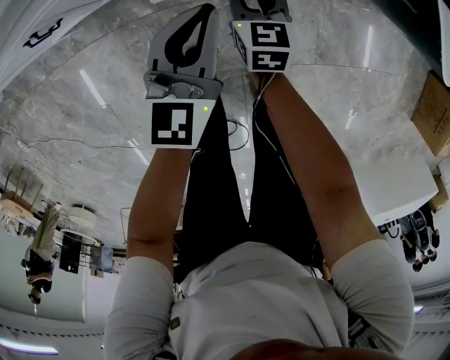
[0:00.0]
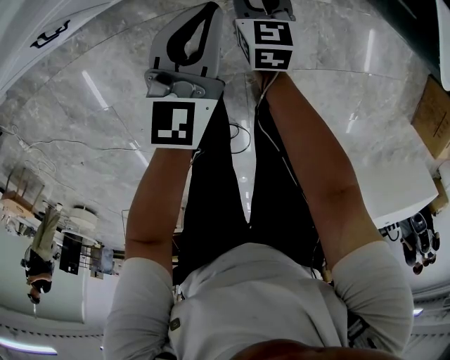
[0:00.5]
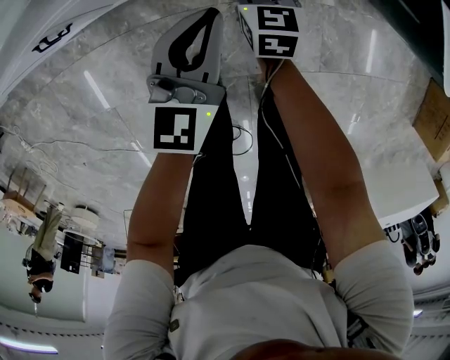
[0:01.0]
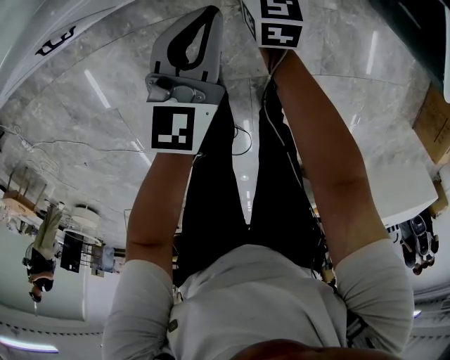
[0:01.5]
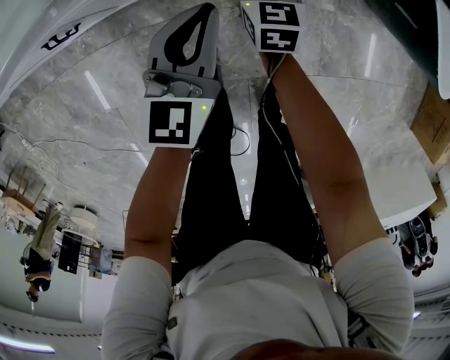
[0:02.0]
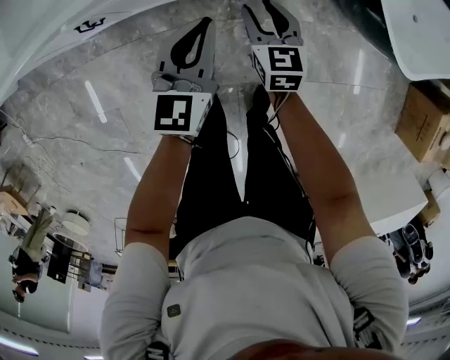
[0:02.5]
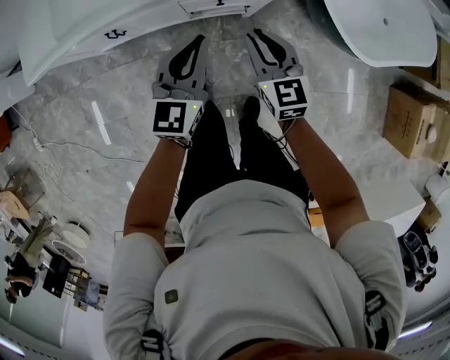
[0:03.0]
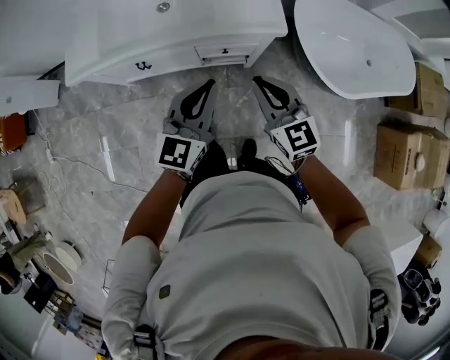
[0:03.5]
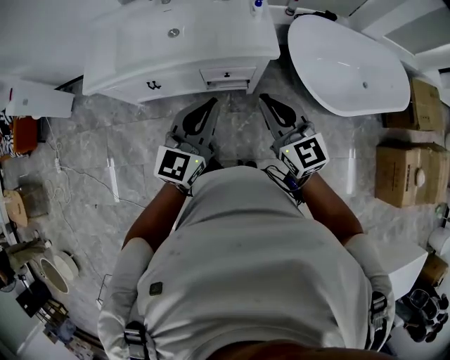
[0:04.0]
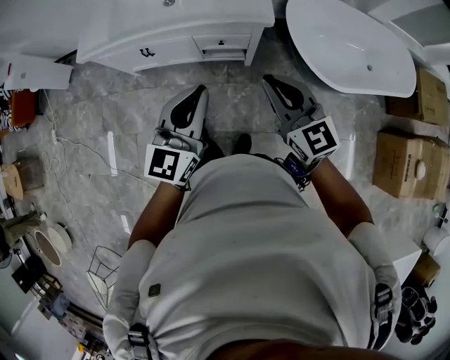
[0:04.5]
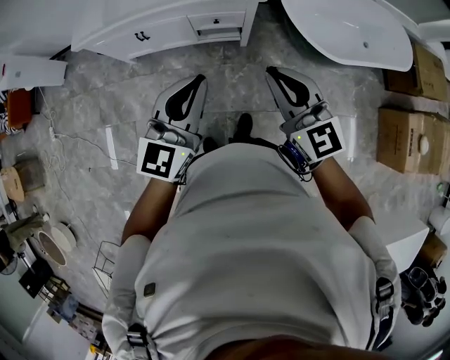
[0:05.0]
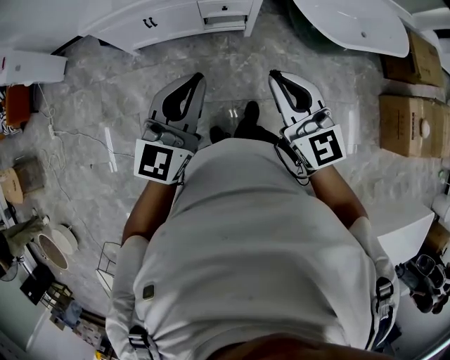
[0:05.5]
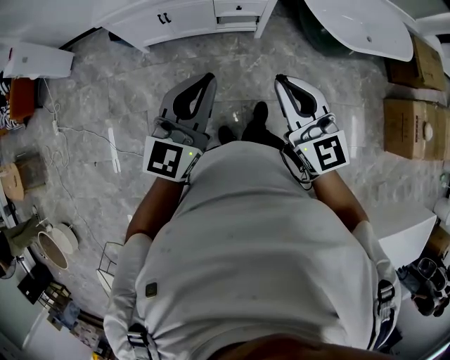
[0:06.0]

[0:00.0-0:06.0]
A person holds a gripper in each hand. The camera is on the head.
0:00.0 to 0:02.0: The left gripper ends up approximately 5 cm from where it was; the right gripper shifts approximately 10 cm forward.
0:02.0 to 0:04.0: Both grippers move upward and backward, roughly 60 cm. The right gripper changes its angle by approximately 40 degrees, and closes.
0:04.0 to 0:06.0: The right gripper moves backward, roughly 30 cm. Meanwhile the left gripper heads backward and to the left, covering some 30 cm.

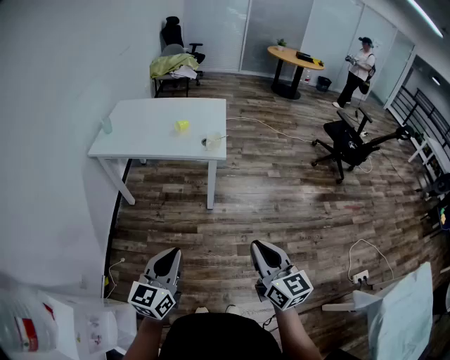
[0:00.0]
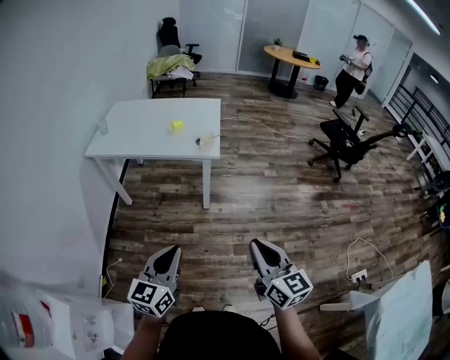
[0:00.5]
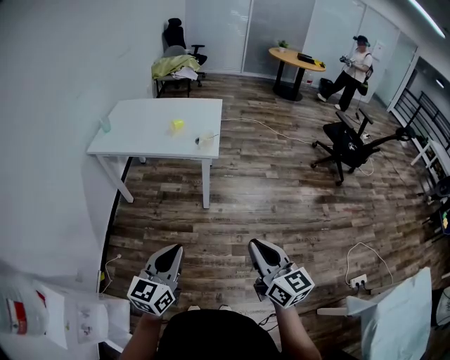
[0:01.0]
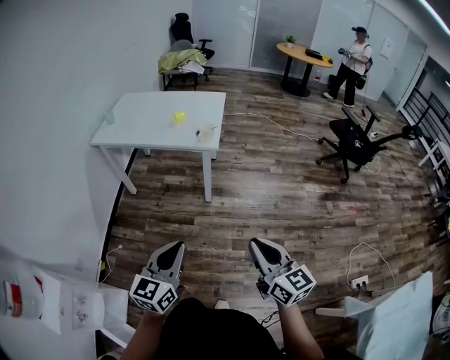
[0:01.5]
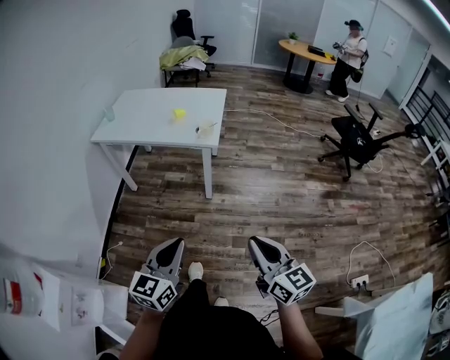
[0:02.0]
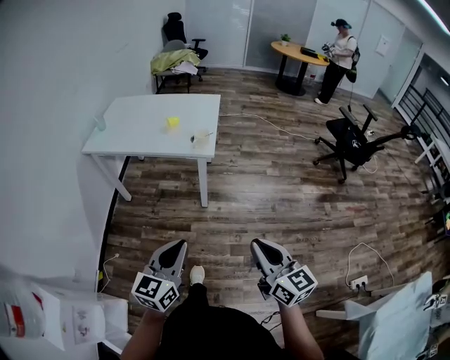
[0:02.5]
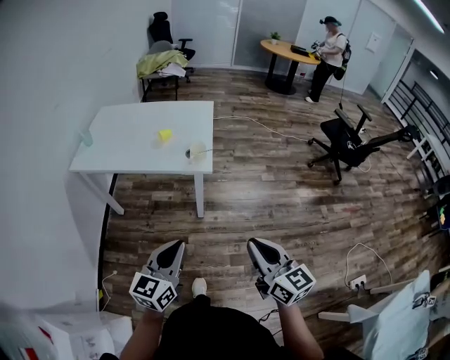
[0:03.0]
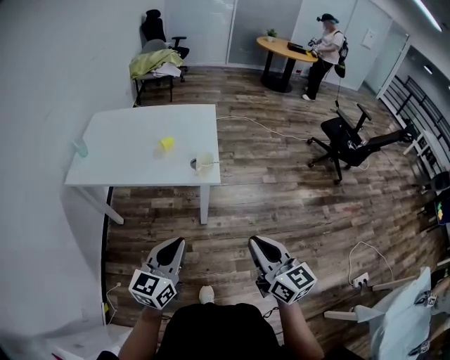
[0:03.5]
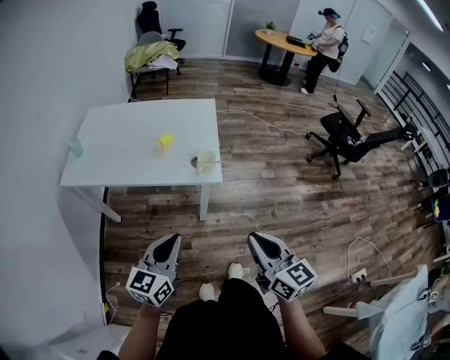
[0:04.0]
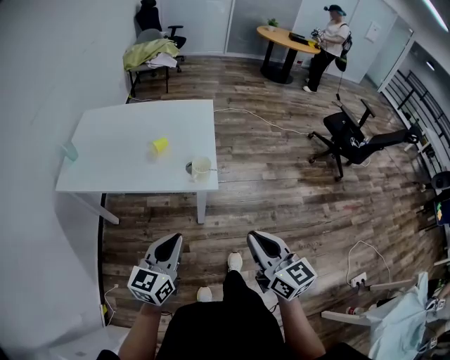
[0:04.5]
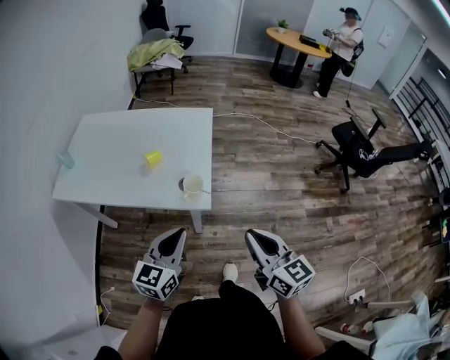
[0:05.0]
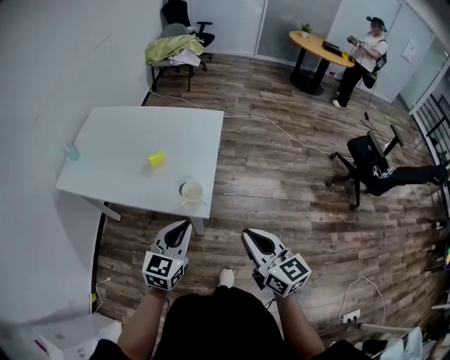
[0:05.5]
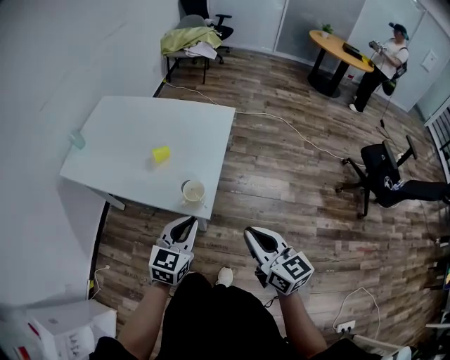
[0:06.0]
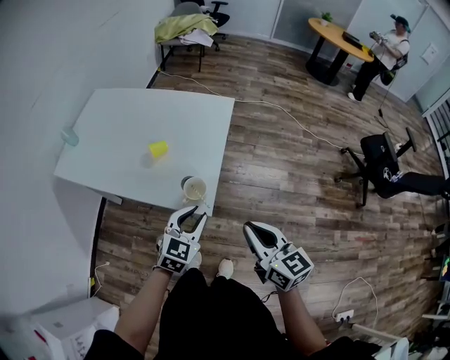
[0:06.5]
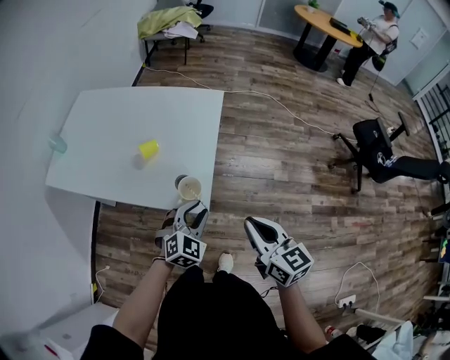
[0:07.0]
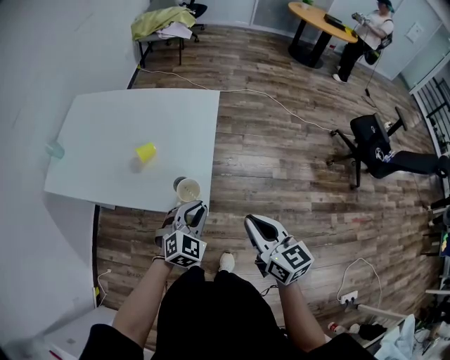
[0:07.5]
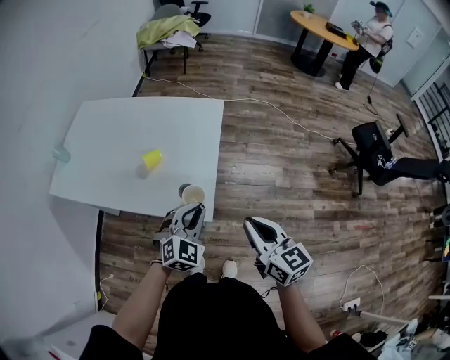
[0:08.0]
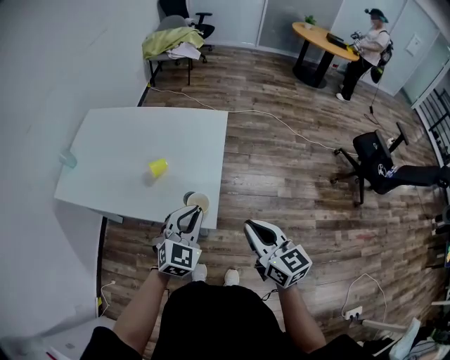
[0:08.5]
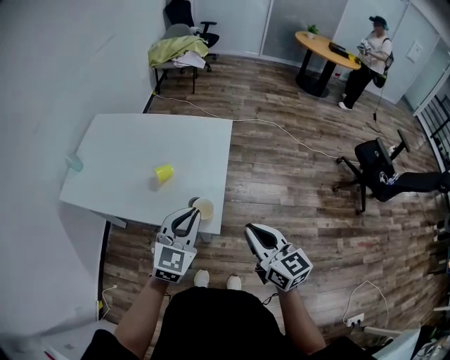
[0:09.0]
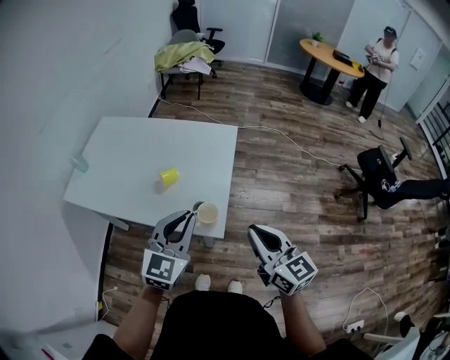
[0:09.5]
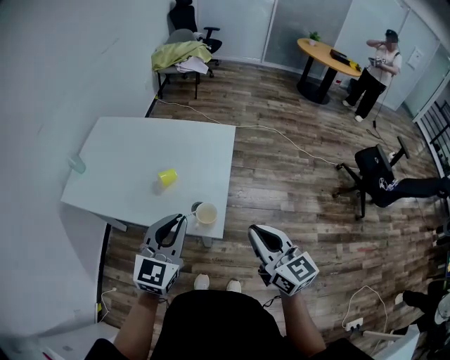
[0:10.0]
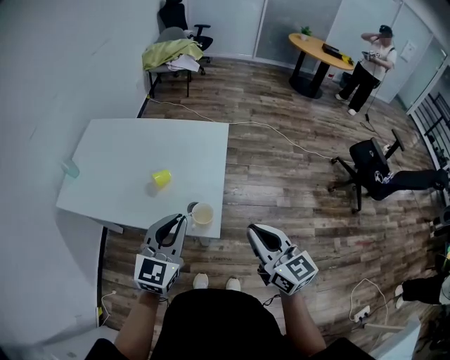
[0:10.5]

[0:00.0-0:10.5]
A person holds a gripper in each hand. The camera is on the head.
0:00.0 to 0:02.0: The grippers both shift to the right by roughly 10 cm.
0:02.0 to 0:04.0: The left gripper shifts approximately 30 cm forward. Meanwhile the right gripper travels forward and to the left by about 30 cm.
0:04.0 to 0:06.5: Both grippers travel together forward and to the right, approximately 30 cm. The left gripper turns by roughly 30 degrees.
0:06.5 to 0:08.5: The left gripper heads upward, covering roughly 5 cm.
0:08.5 to 0:10.5: The right gripper shifts by some 5 cm, while the left gripper moves upward and to the left, roughly 10 cm, and swivels some 20 degrees.

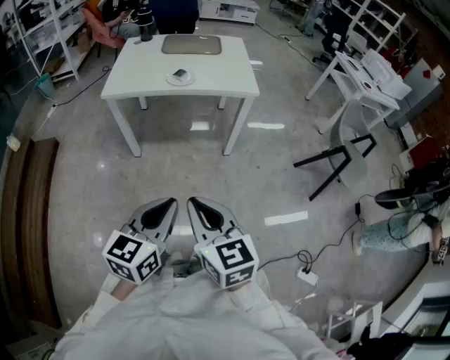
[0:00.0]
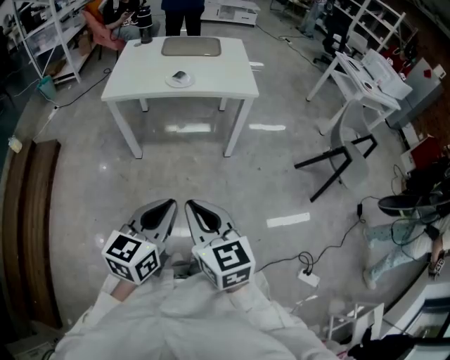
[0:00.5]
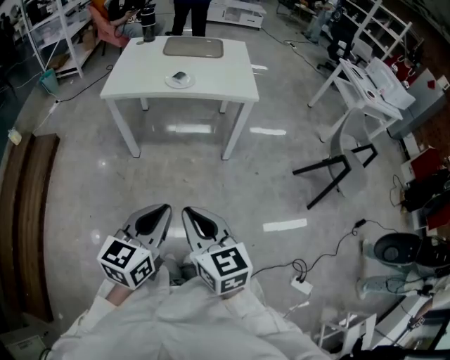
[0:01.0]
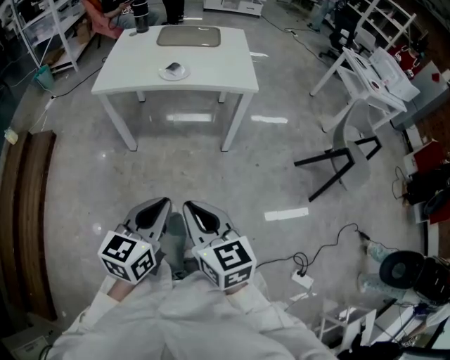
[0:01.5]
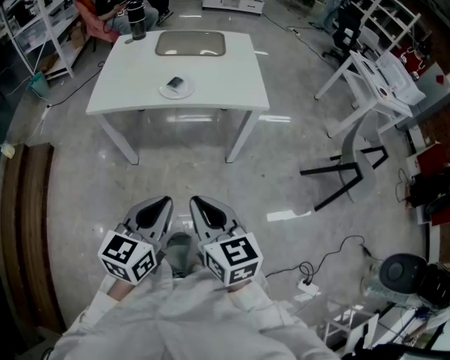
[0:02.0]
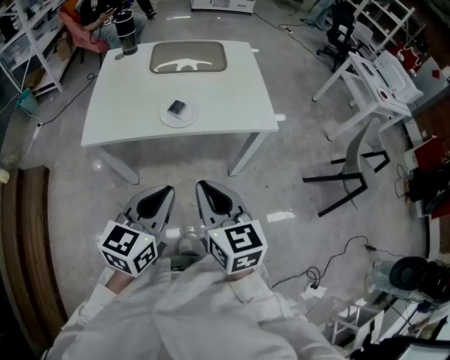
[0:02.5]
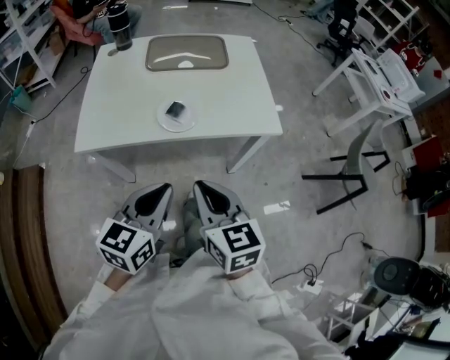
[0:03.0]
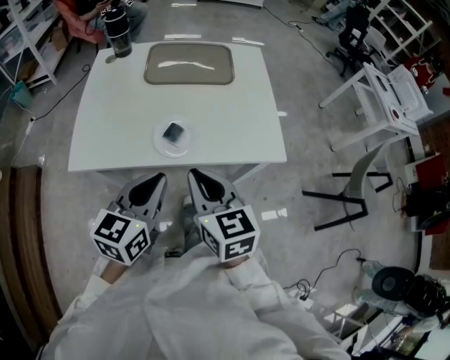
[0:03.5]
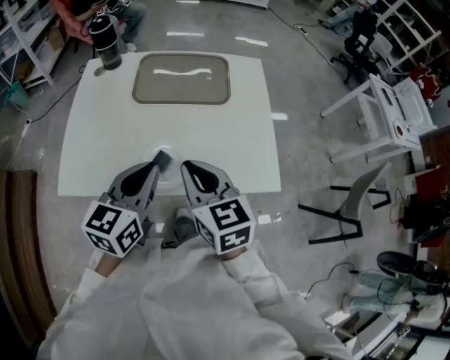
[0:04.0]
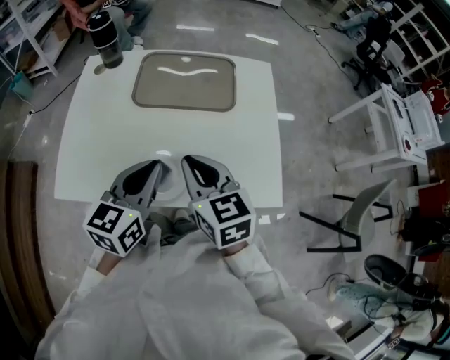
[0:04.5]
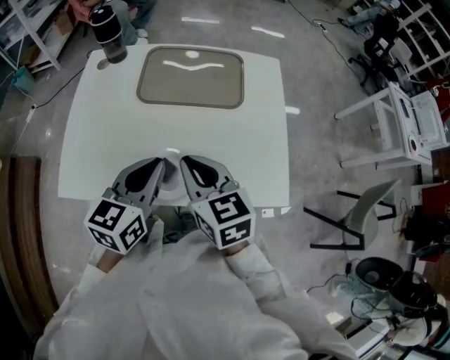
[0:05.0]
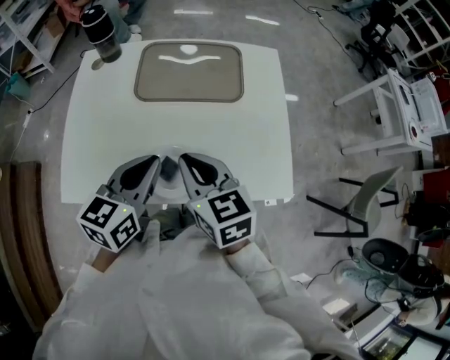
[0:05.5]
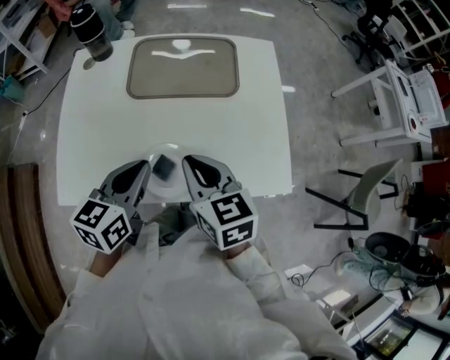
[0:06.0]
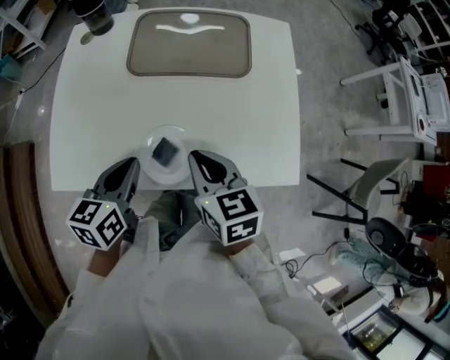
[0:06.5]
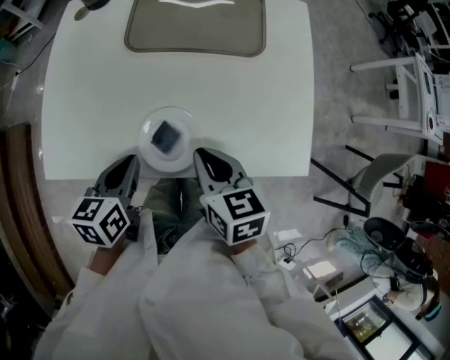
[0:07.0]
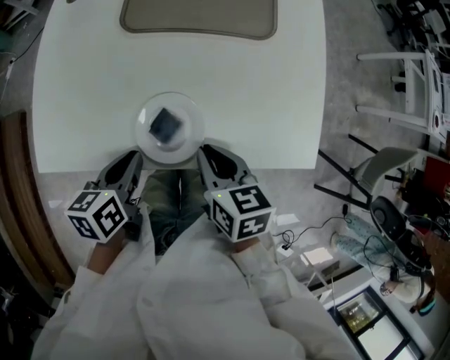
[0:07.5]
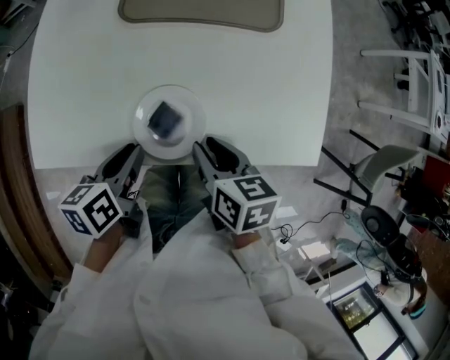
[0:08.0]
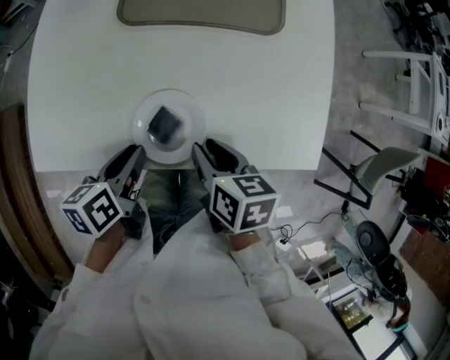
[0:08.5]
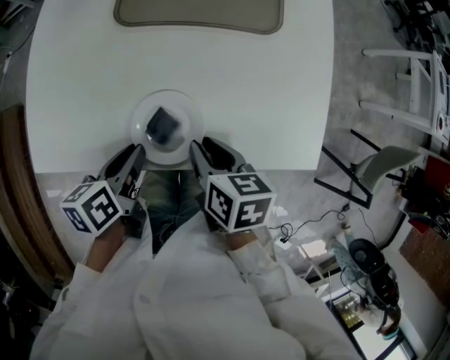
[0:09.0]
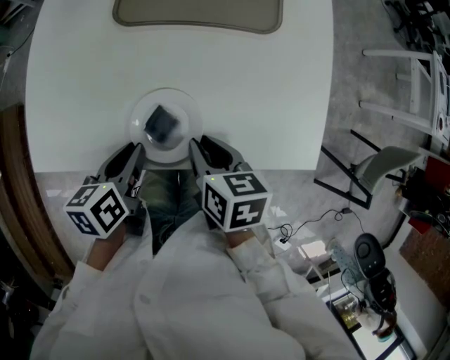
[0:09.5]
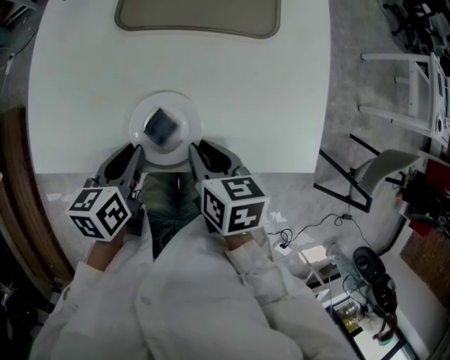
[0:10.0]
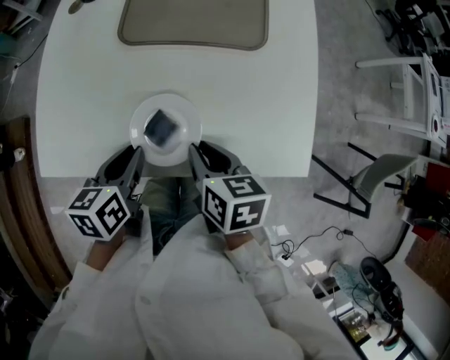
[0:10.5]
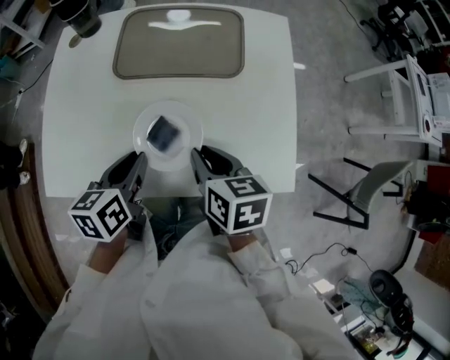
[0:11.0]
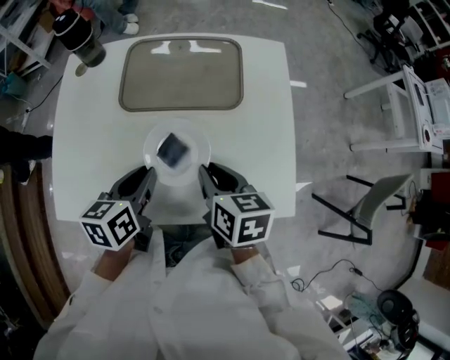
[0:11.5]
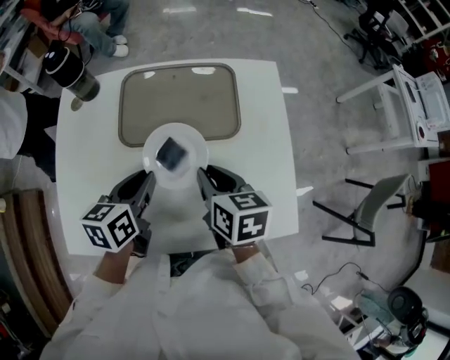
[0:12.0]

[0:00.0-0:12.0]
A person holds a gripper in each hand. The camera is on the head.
0:00.0 to 0:02.0: Both grippers travel together forward, about 20 cm.
0:02.0 to 0:04.0: Both grippers are carried forward, approximately 50 cm.
0:04.0 to 0:06.0: Both grippers travel together forward, some 5 cm.
0:06.0 to 0:08.0: The two grippers go roughly 15 cm downward. The right gripper turns by roughly 30 degrees, and opens; the left gripper rotates some 40 degrees.
0:08.0 to 0:10.0: The grippers move only a little.
0:10.0 to 0:12.0: The grippers both shift forward and upward by roughly 20 cm.
